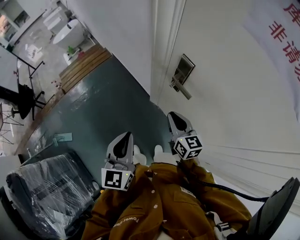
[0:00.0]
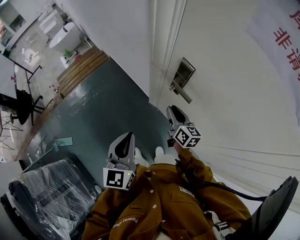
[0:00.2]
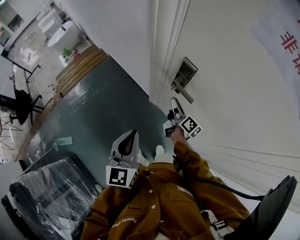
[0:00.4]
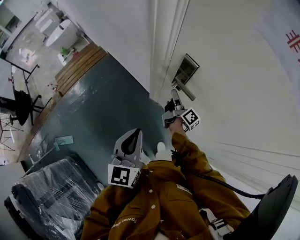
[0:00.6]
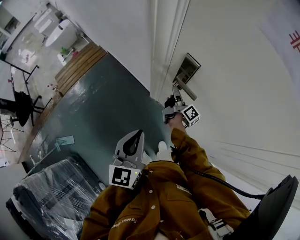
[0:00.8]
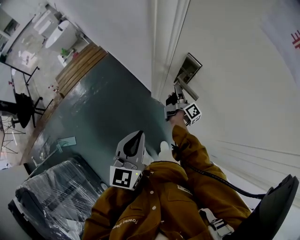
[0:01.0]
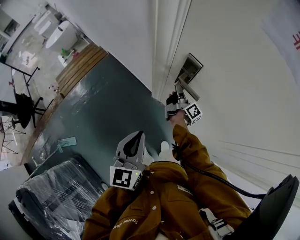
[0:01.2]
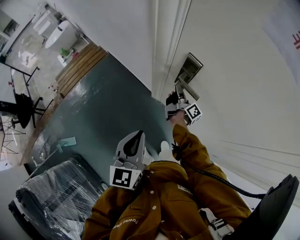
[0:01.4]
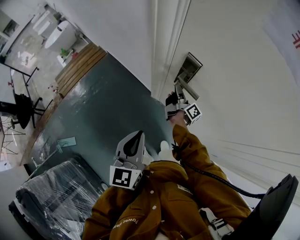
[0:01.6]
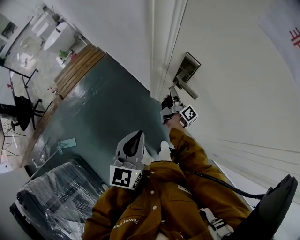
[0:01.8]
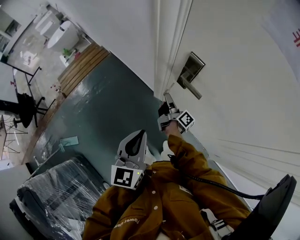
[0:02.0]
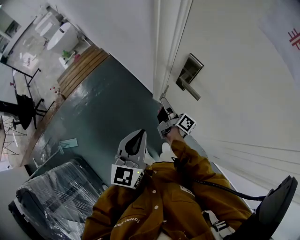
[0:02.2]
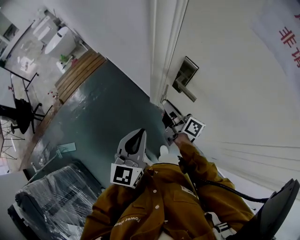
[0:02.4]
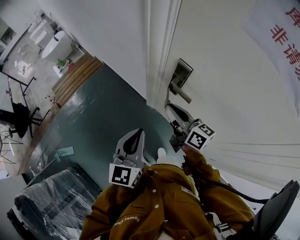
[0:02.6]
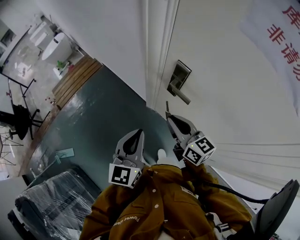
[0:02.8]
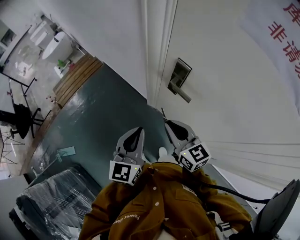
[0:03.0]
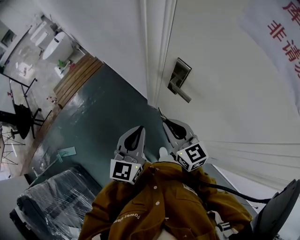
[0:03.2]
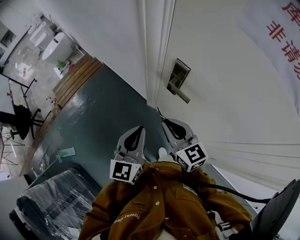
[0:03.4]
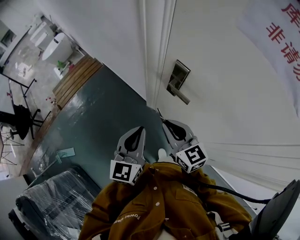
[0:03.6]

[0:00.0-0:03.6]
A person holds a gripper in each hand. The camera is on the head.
0:00.0 to 0:01.8: The right gripper travels forward and downward by some 20 cm, twists approximately 70 degrees clockwise, seen from behind, and opens, then closes once more.
0:01.8 to 0:03.6: The right gripper moves upward and backward, about 25 cm, and rotates around the line of its fingers by about 80 degrees, counterclockwise from behind.

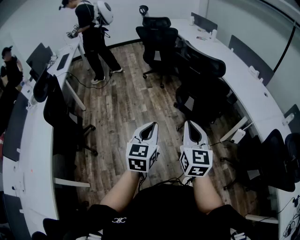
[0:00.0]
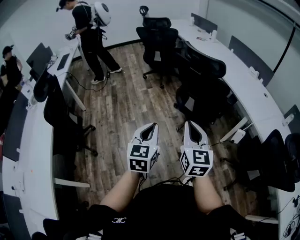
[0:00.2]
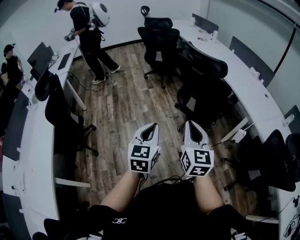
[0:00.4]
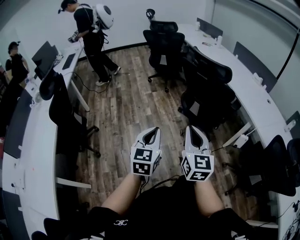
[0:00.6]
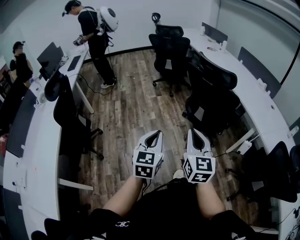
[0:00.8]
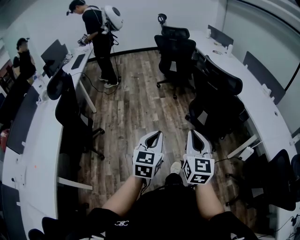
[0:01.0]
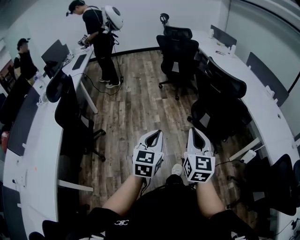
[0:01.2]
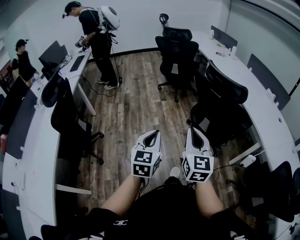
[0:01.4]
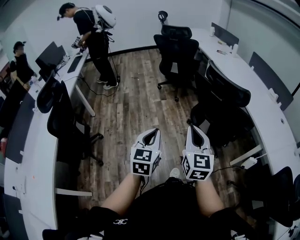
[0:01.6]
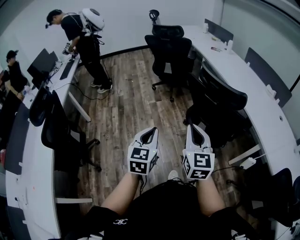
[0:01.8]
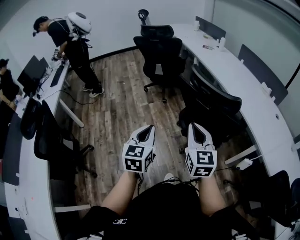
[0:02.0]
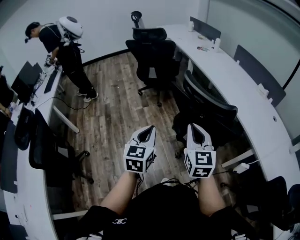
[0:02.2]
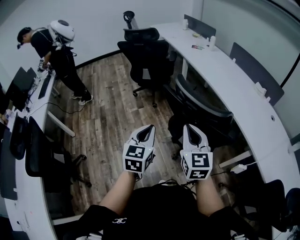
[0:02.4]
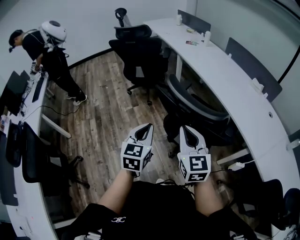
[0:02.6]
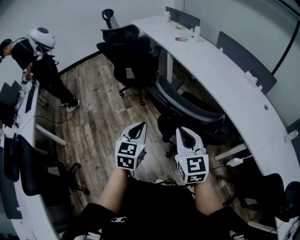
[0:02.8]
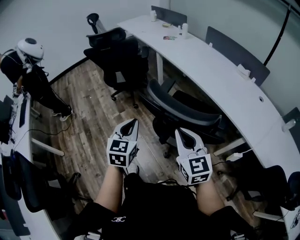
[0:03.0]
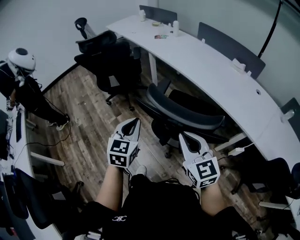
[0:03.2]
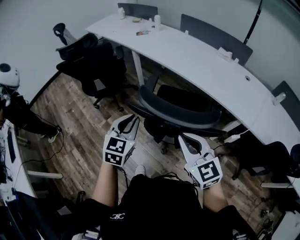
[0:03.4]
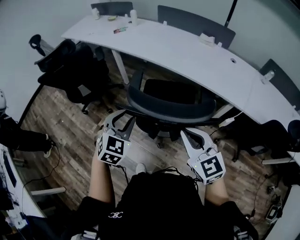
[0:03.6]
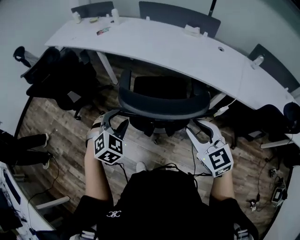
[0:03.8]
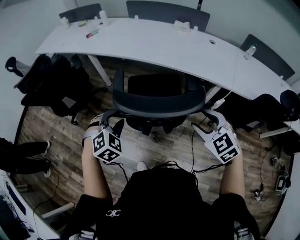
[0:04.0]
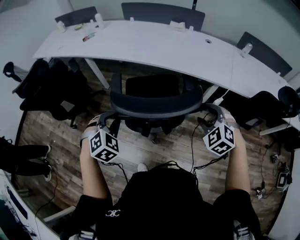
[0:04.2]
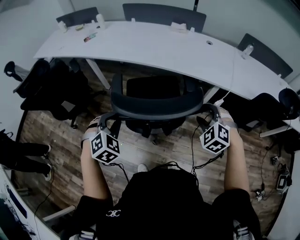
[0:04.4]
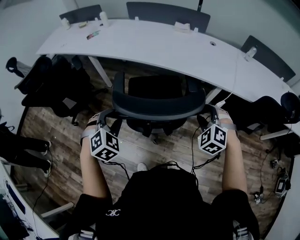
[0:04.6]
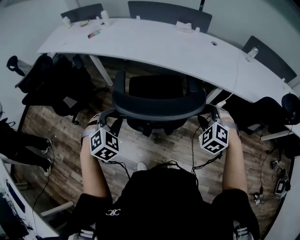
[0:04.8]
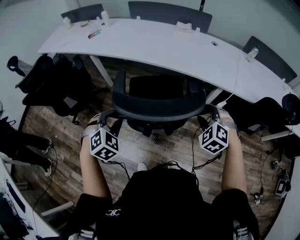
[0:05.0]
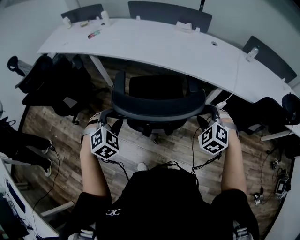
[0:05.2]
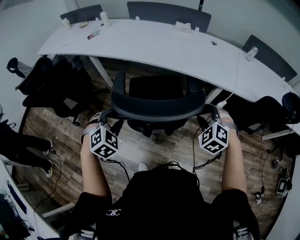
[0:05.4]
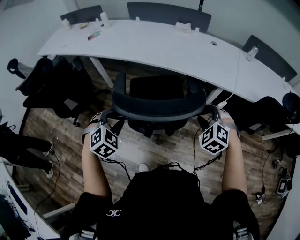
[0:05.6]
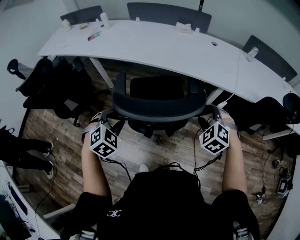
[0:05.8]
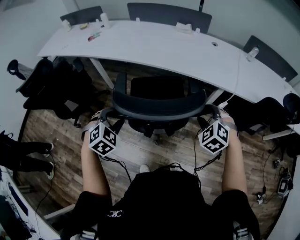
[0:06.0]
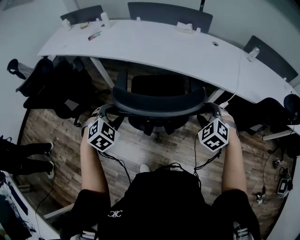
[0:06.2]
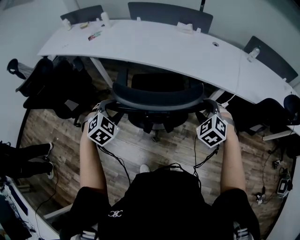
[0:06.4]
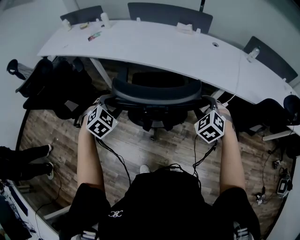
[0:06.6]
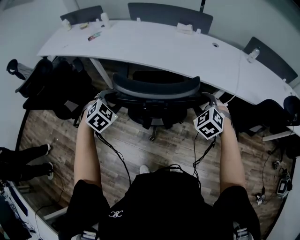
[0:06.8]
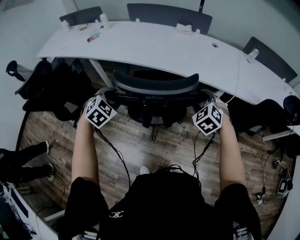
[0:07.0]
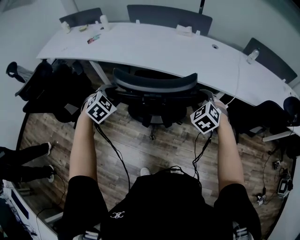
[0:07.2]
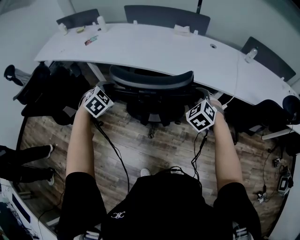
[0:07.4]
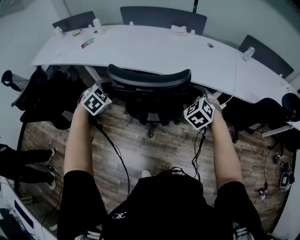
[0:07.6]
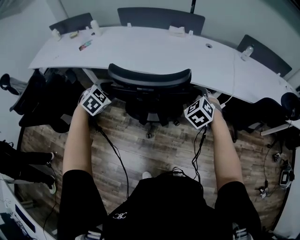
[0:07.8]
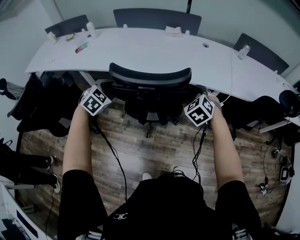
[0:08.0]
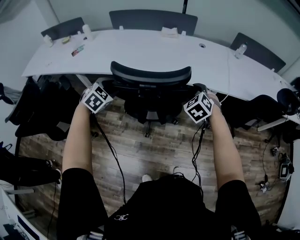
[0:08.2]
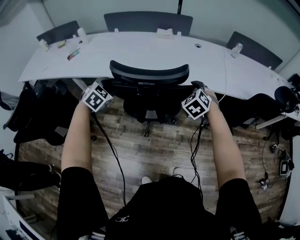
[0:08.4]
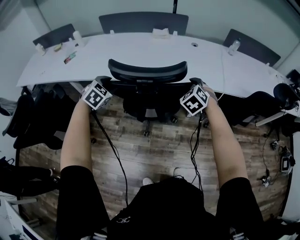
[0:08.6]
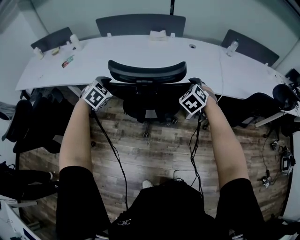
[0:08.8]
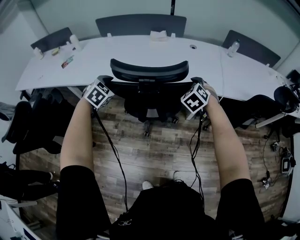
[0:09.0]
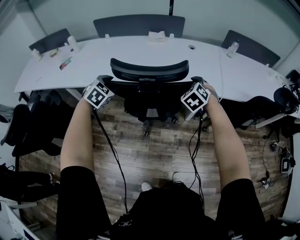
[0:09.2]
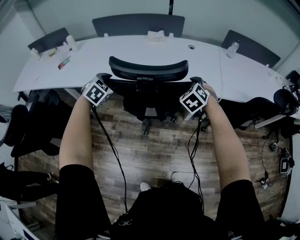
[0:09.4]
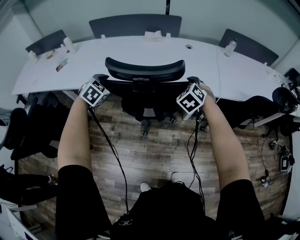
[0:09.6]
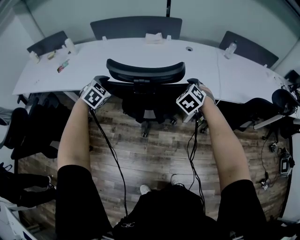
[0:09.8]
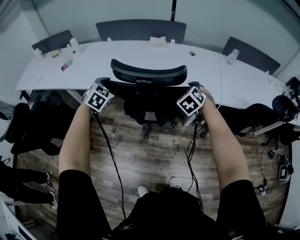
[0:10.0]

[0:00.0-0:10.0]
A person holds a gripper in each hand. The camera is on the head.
0:00.0 to 0:01.4: The grippers both shift forward and to the left by approximately 15 cm.
0:01.4 to 0:02.8: The right gripper heads forward and to the right, covering about 35 cm. The left gripper heads forward, covering approximately 40 cm.
0:02.8 to 0:04.2: The left gripper moves about 20 cm, rotates around the line of its fingers by about 60 degrees, clockwise from behind, and opens, then closes again; the right gripper changes place by some 20 cm, angles its fingers downward, by roughly 30 degrees, and opens.
0:04.2 to 0:05.8: The left gripper opens.
0:05.8 to 0:07.2: The grippers both shift forward by about 10 cm.
0:07.2 to 0:08.6: The left gripper is displaced forward by about 15 cm. Meanwhile the right gripper is displaced forward by roughly 10 cm.
0:08.6 to 0:10.0: Both grippers move forward, roughly 5 cm.

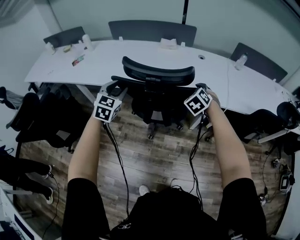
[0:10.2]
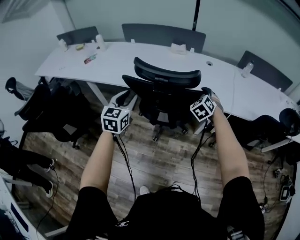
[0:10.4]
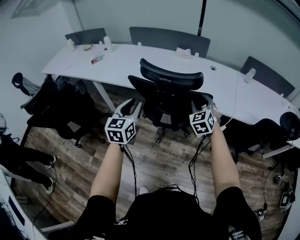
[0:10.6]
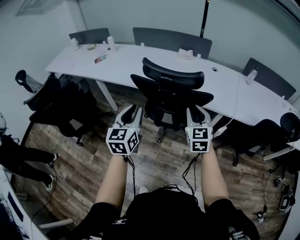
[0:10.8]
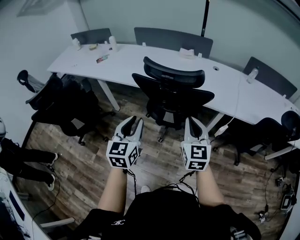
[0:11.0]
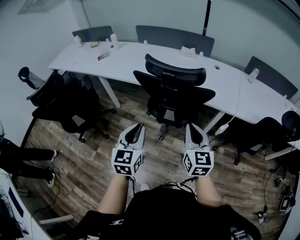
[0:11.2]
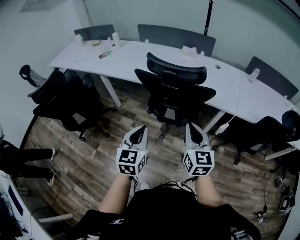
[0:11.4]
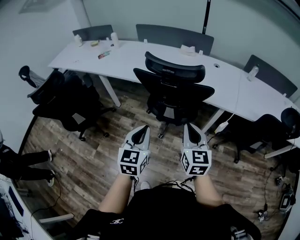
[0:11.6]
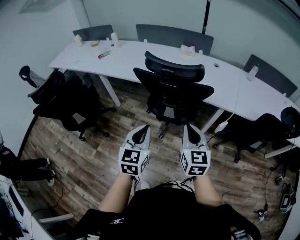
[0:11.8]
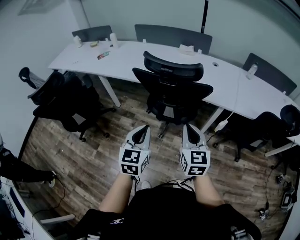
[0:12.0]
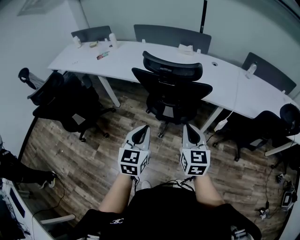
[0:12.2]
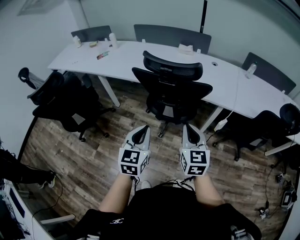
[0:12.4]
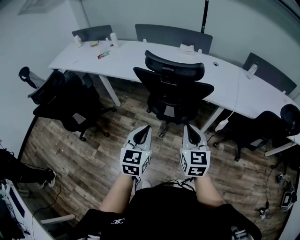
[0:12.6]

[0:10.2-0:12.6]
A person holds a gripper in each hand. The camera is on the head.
0:10.2 to 0:11.4: Both grippers move backward, roughly 30 cm. The right gripper angles its fingers upward, by some 40 degrees, and closes its fingers. Meanwhile the left gripper turns by roughly 30 degrees, and closes its fingers.
0:11.4 to 0:12.6: There are only small adjustments of the grippers.

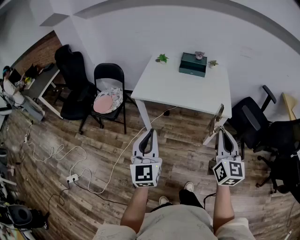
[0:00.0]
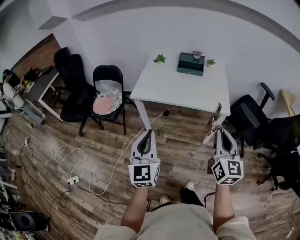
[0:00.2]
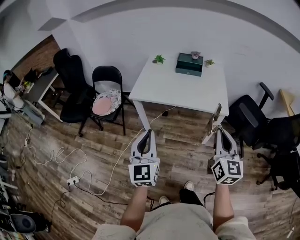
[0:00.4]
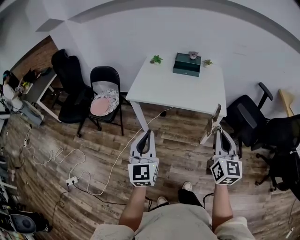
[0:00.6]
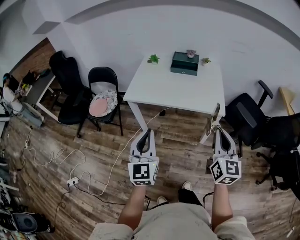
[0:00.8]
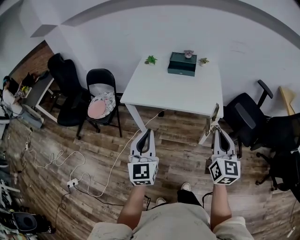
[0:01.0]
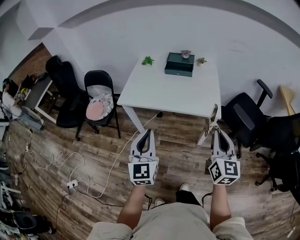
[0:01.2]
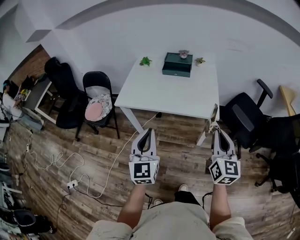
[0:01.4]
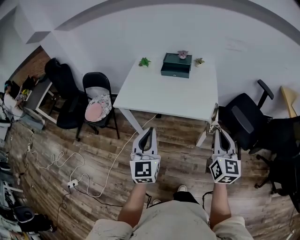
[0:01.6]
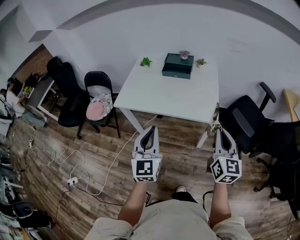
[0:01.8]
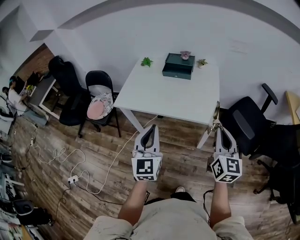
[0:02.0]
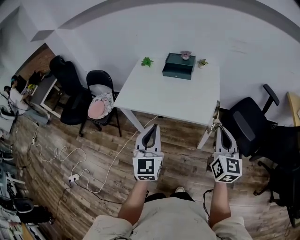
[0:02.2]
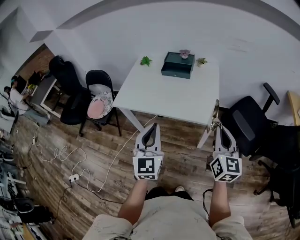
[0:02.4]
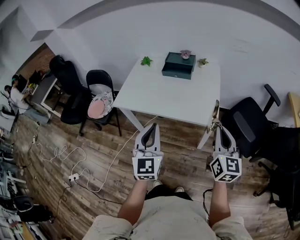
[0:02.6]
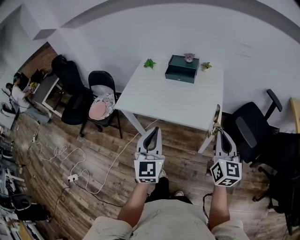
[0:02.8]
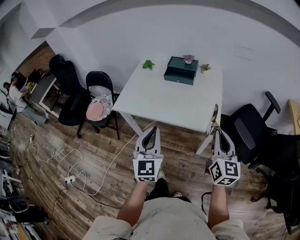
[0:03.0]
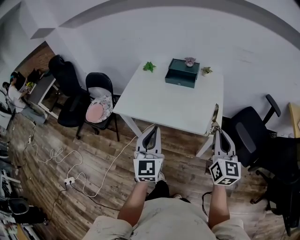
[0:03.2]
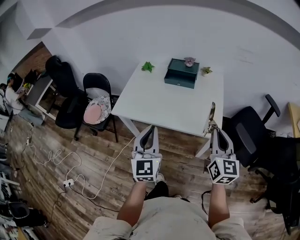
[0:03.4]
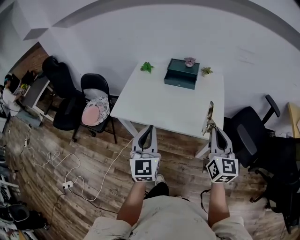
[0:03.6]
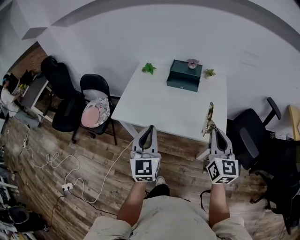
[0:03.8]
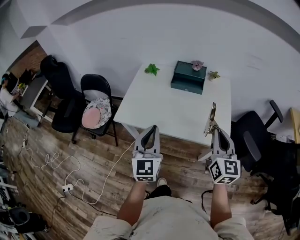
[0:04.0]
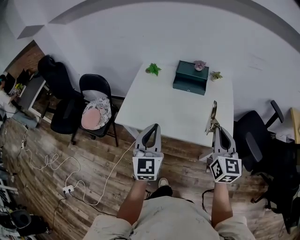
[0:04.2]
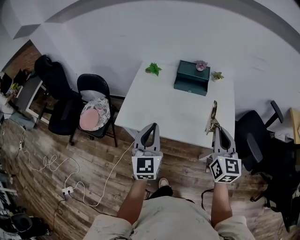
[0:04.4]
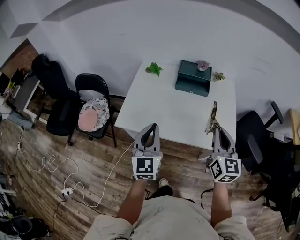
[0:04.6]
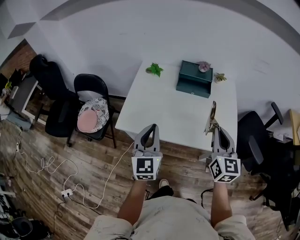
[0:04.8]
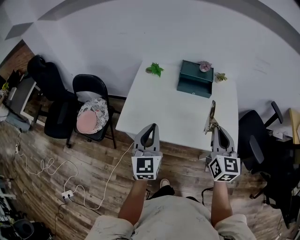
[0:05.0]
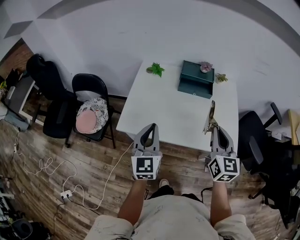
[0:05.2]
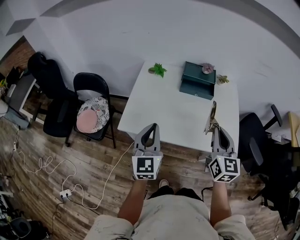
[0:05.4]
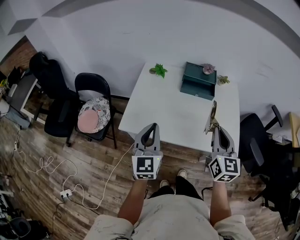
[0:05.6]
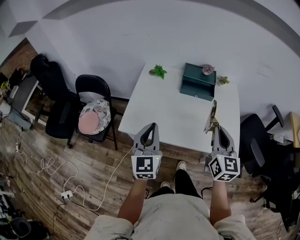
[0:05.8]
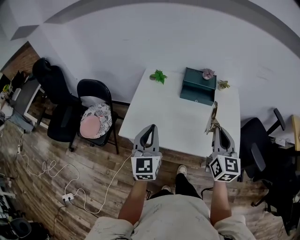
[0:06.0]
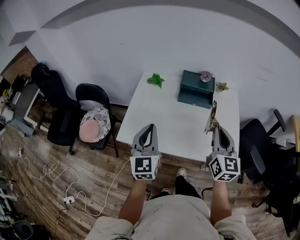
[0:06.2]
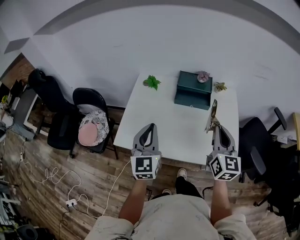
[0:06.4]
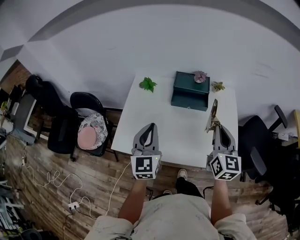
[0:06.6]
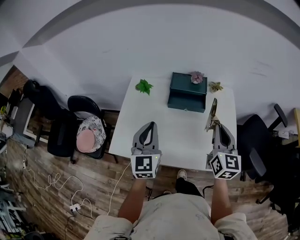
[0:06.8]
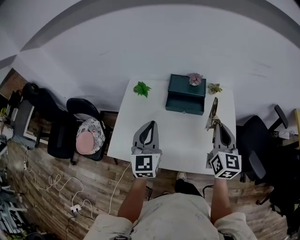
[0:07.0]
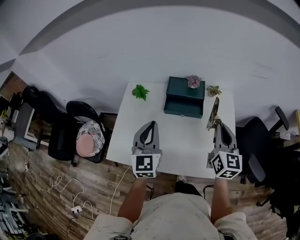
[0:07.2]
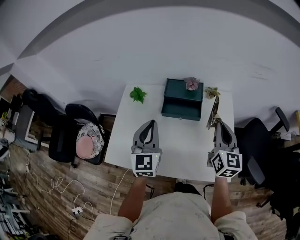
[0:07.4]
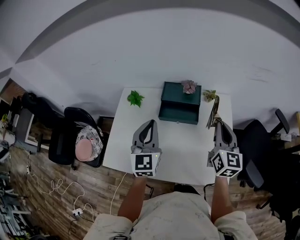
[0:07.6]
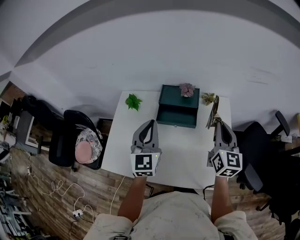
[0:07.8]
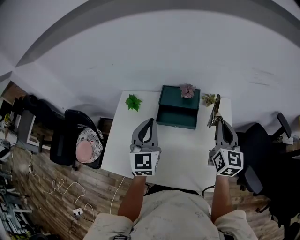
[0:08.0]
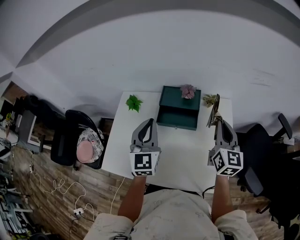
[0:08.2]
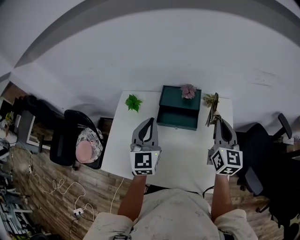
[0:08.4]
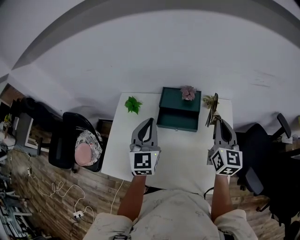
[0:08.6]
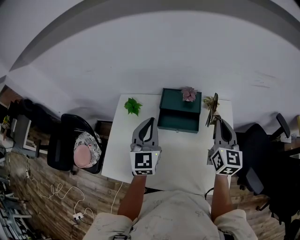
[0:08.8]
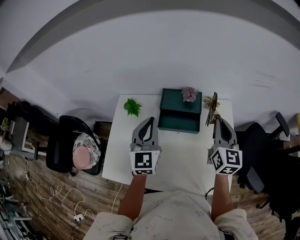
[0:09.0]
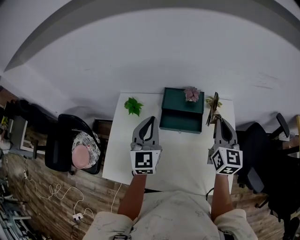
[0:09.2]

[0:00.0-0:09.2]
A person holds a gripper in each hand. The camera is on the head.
0:00.0 to 0:01.6: Both grippers travel together to the right and forward, roughly 20 cm.
0:01.6 to 0:03.0: The two grippers go roughly 10 cm forward.
0:03.0 to 0:04.6: The grippers both shift forward and to the left by some 25 cm.
0:04.6 to 0:06.2: The grippers both shift forward by some 10 cm.
0:06.2 to 0:07.6: The grippers both shift forward and to the right by approximately 20 cm.
0:07.6 to 0:09.2: Both grippers move forward, some 10 cm.
